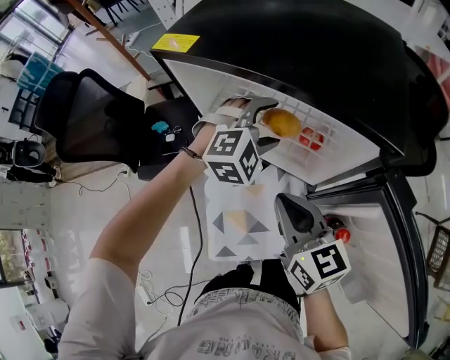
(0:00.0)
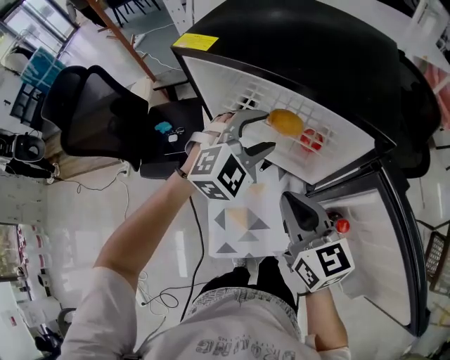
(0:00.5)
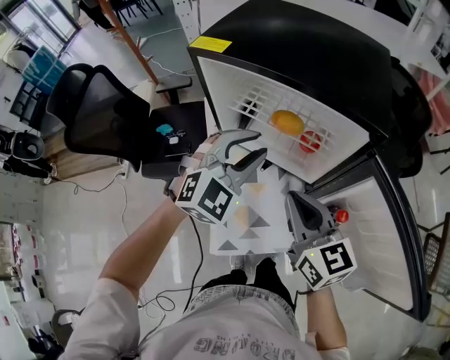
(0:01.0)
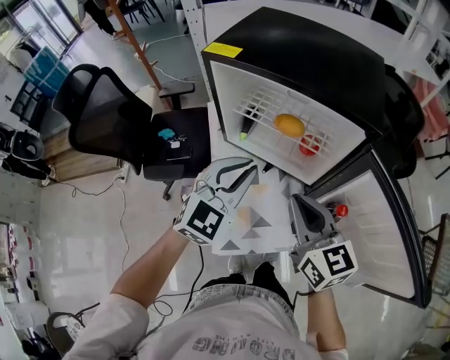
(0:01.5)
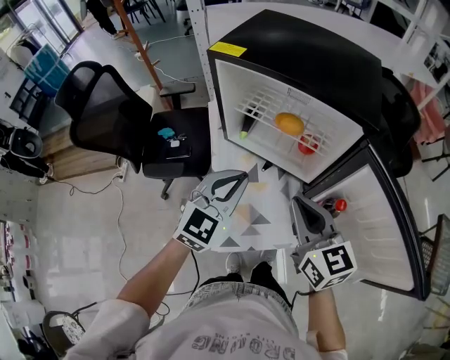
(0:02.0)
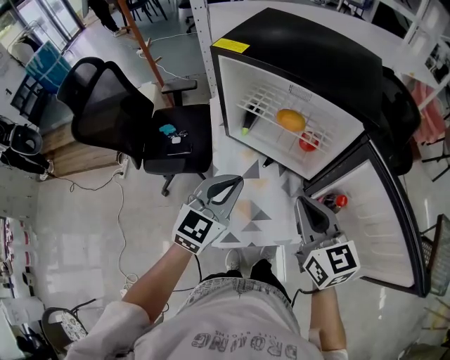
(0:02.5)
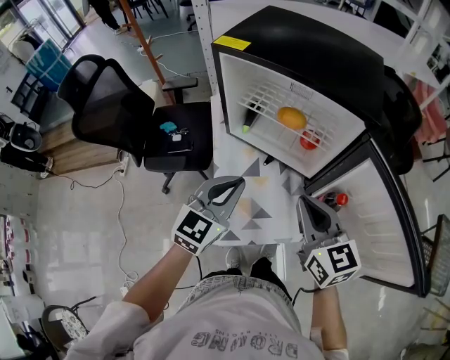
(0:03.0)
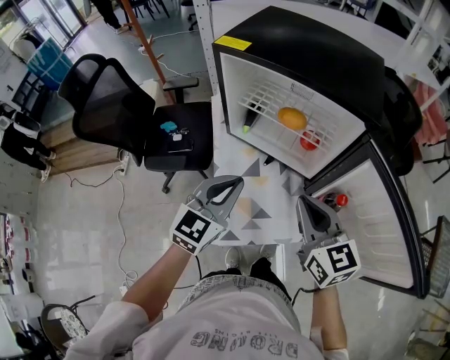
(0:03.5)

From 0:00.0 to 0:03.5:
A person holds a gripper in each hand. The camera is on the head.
From 0:00.0 to 0:02.0: The left gripper travels backward and to the left by some 20 cm, changes its angle by roughly 50 degrees, and closes its fingers. Meanwhile the right gripper heads backward and upward, covering about 10 cm.
From 0:02.0 to 0:03.5: There are only small adjustments of the grippers.

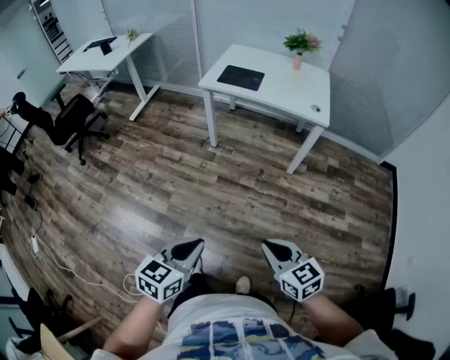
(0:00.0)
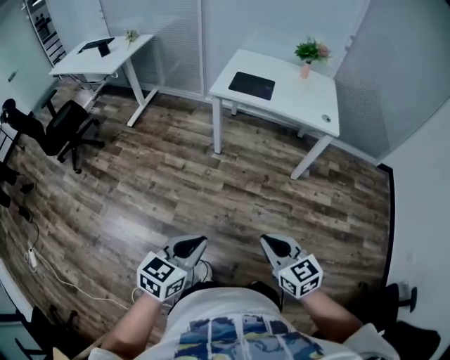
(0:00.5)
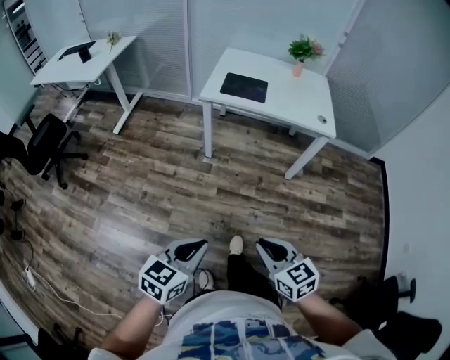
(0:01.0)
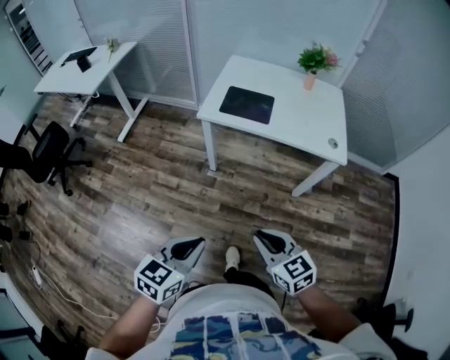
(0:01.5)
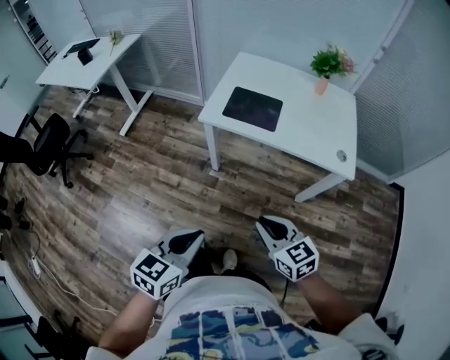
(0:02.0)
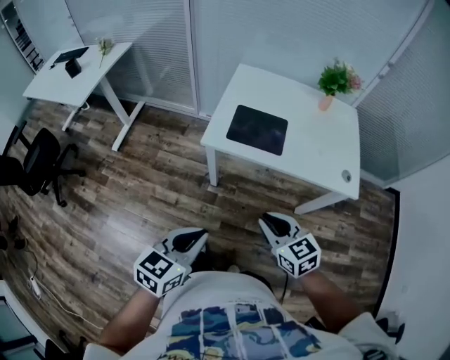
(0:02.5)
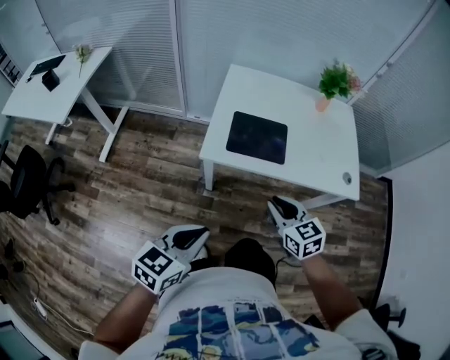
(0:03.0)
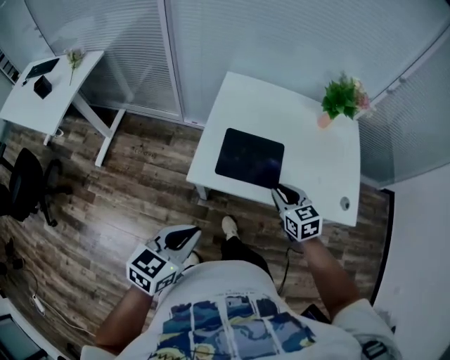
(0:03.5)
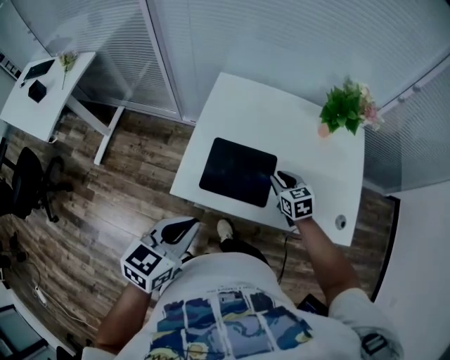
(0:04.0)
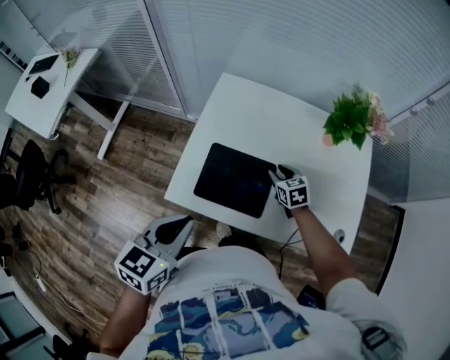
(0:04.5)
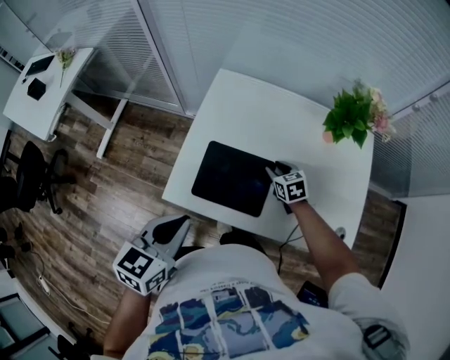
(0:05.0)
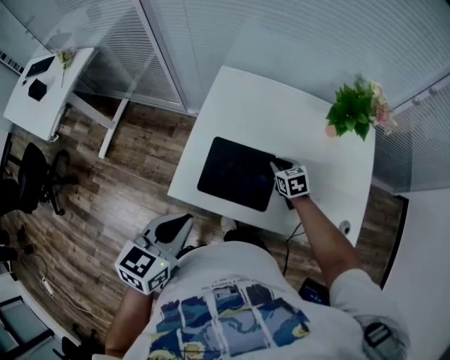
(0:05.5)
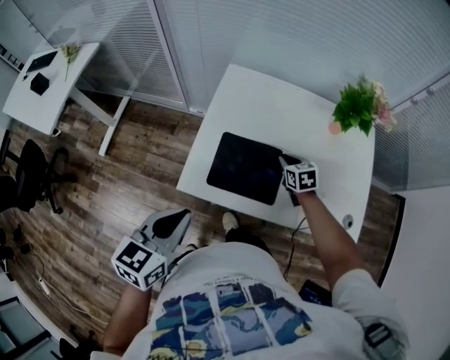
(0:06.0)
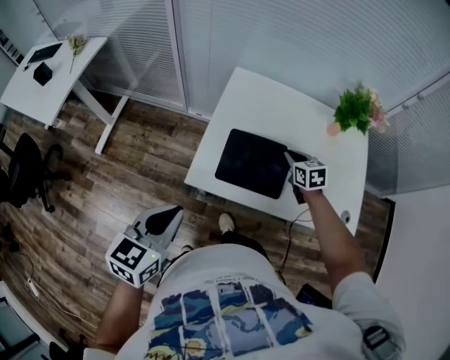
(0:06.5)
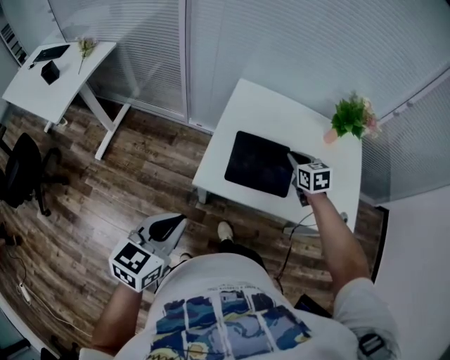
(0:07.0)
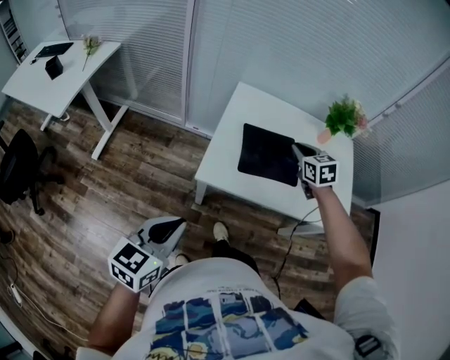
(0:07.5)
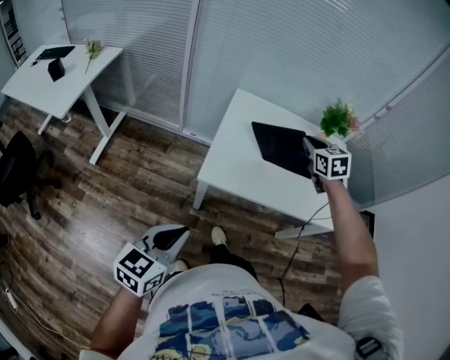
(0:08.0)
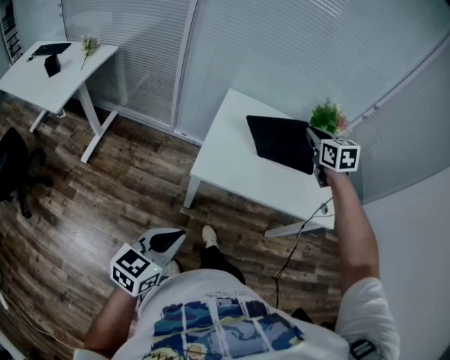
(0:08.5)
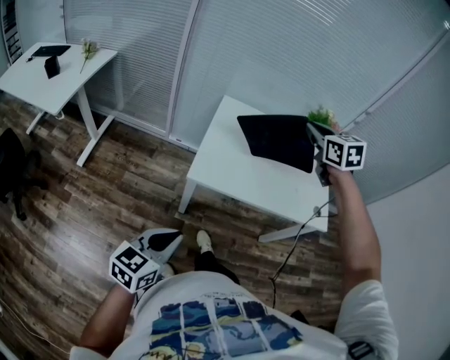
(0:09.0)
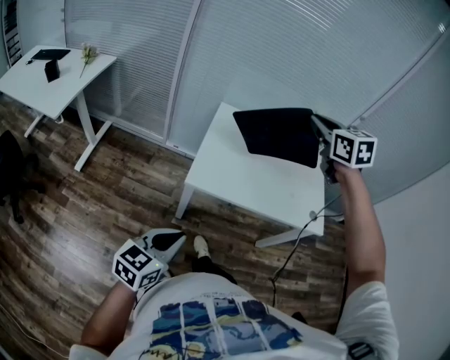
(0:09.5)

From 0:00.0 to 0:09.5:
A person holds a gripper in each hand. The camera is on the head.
From 0:00.0 to 0:02.0: The two grippers travel together, forward, about 40 cm.
From 0:02.0 to 0:04.0: The pair of grippers is taken forward, about 50 cm. The right gripper swivels some 20 degrees.
From 0:04.0 to 0:05.5: The right gripper is displaced forward and downward by about 10 cm.
From 0:05.5 to 0:07.5: The left gripper shifts roughly 25 cm backward and to the left. Meanwhile the right gripper goes some 25 cm upward and backward.
From 0:07.5 to 0:09.5: The right gripper shifts roughly 30 cm upward, while the left gripper heads backward, covering some 10 cm.

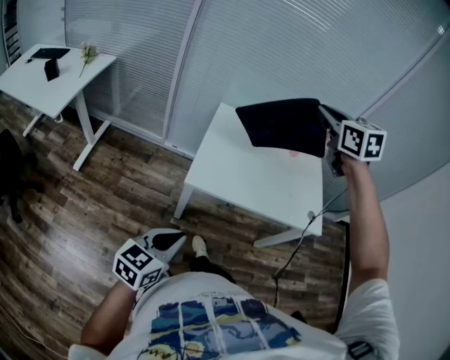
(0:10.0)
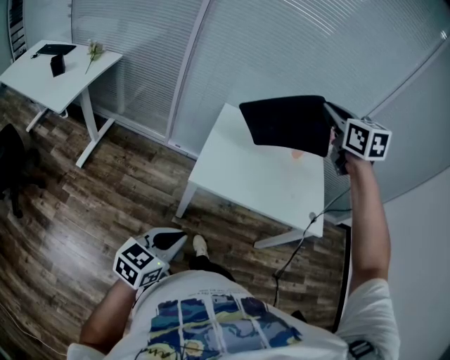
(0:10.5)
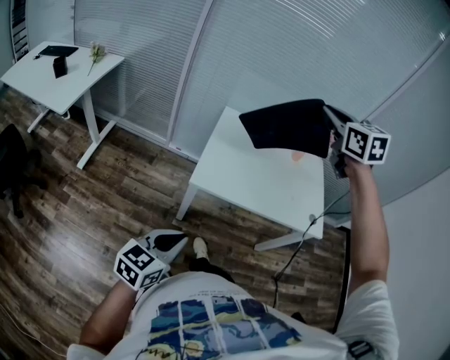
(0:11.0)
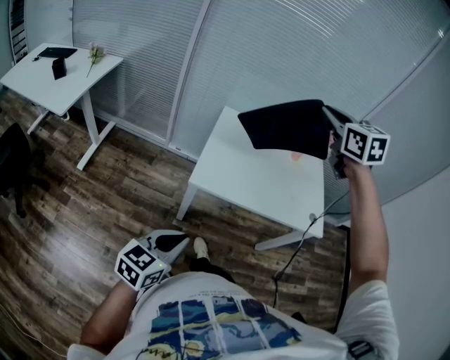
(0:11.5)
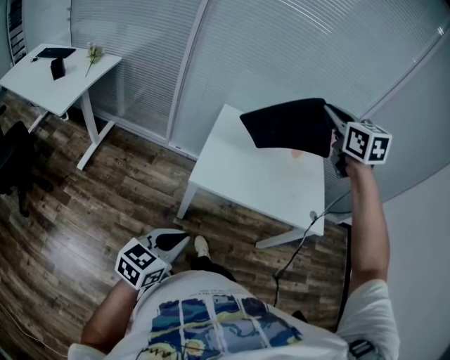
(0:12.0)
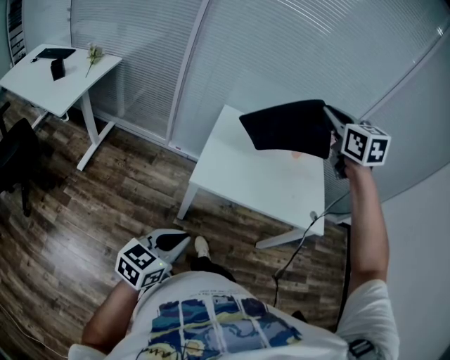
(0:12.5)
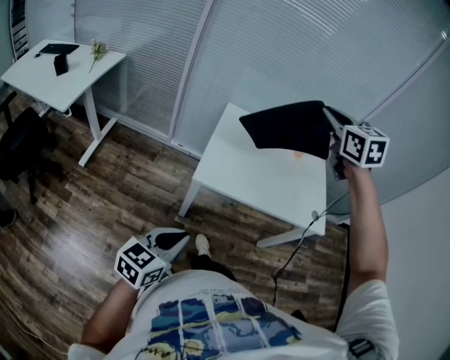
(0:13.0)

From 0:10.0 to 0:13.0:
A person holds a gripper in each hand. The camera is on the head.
From 0:10.0 to 0:13.0: The grippers move only a little.

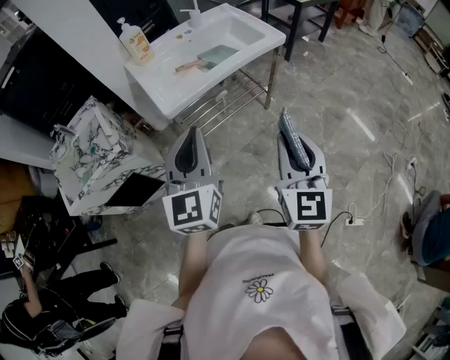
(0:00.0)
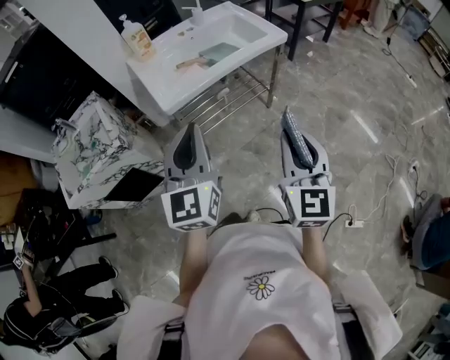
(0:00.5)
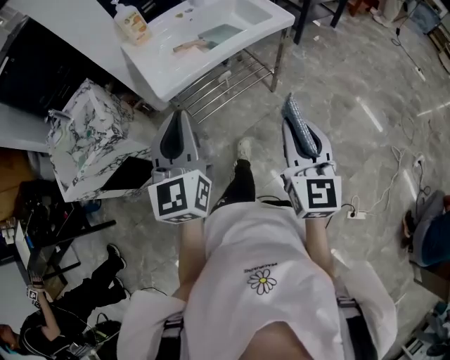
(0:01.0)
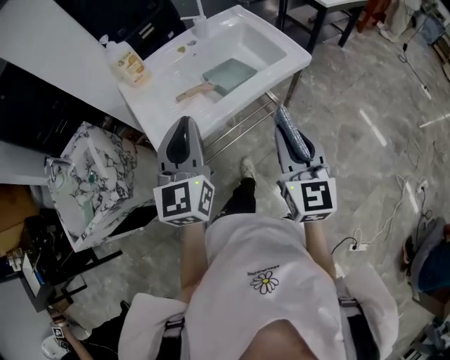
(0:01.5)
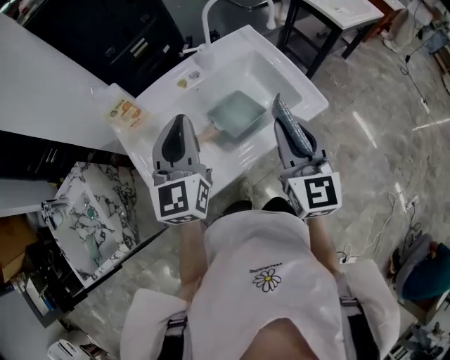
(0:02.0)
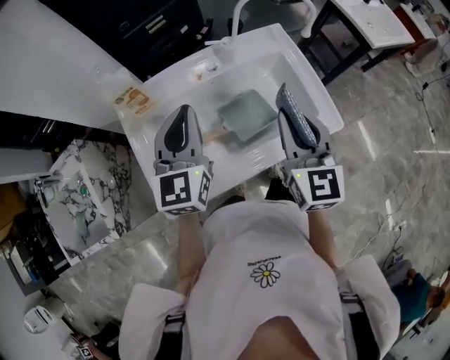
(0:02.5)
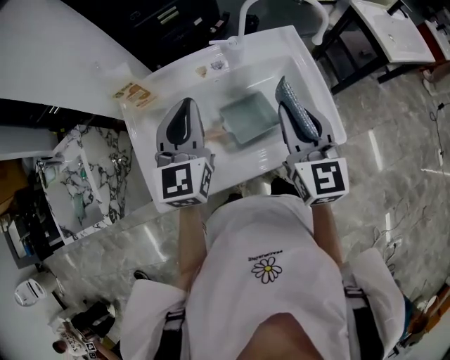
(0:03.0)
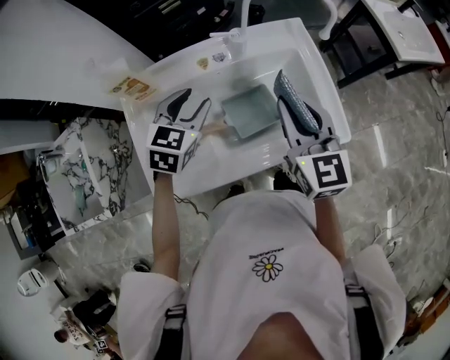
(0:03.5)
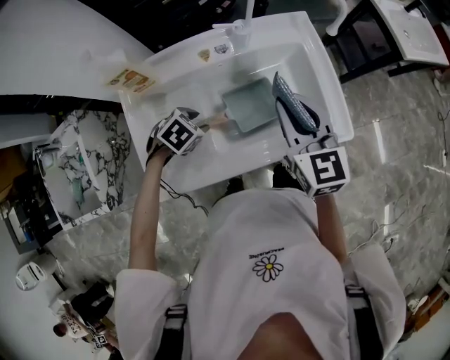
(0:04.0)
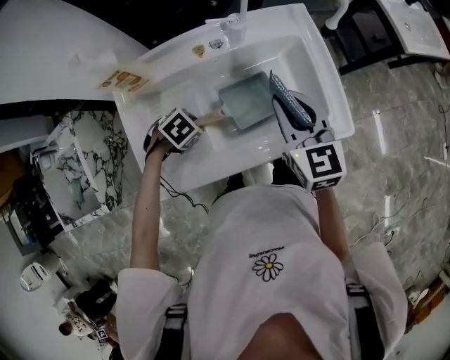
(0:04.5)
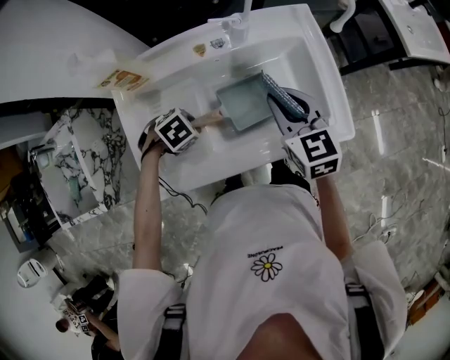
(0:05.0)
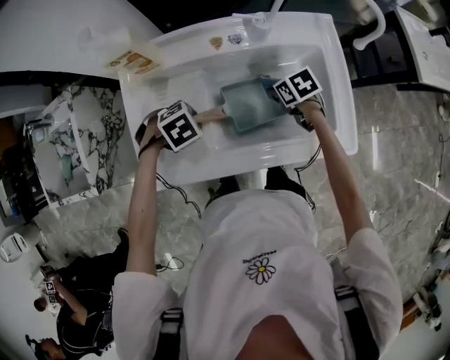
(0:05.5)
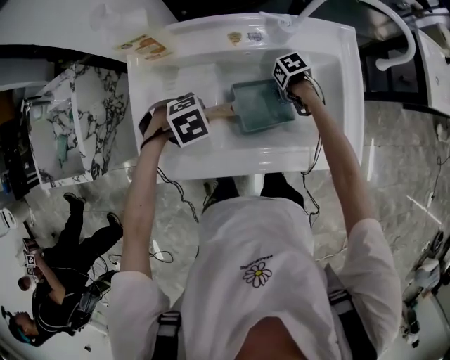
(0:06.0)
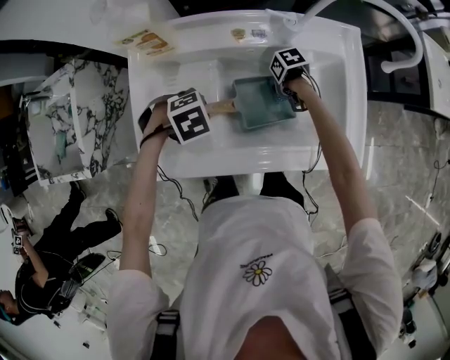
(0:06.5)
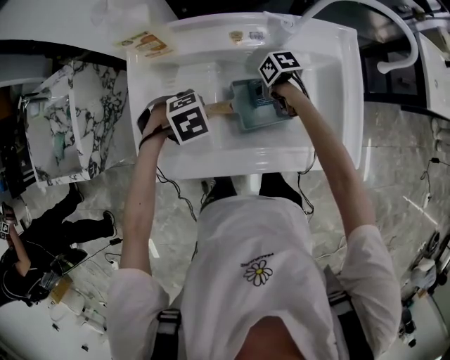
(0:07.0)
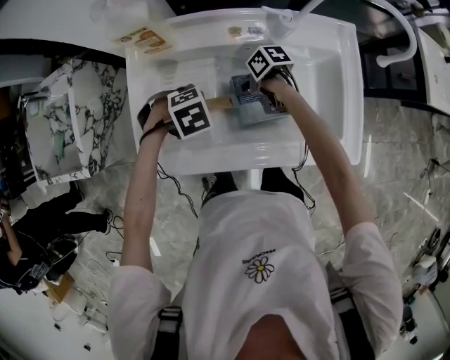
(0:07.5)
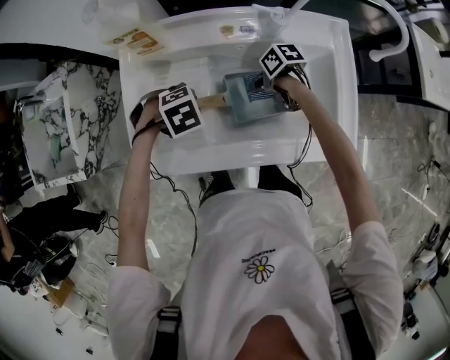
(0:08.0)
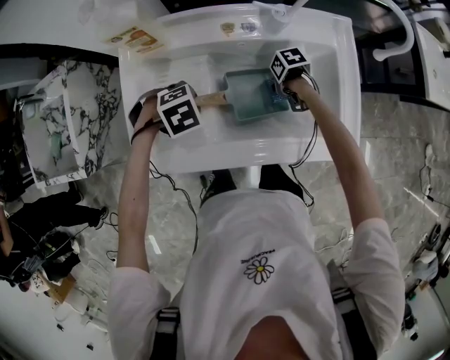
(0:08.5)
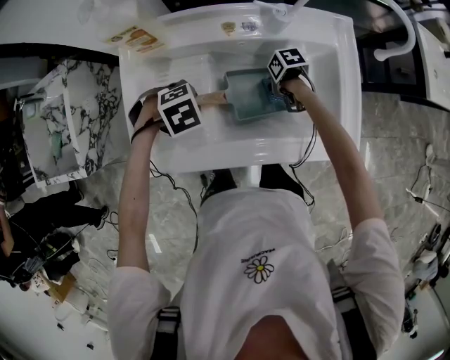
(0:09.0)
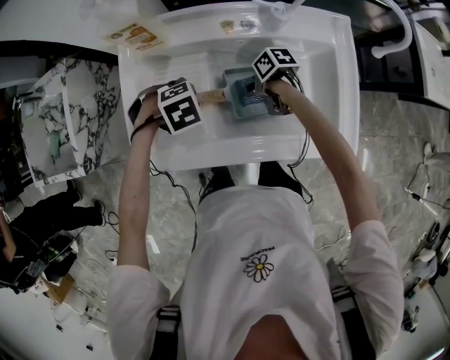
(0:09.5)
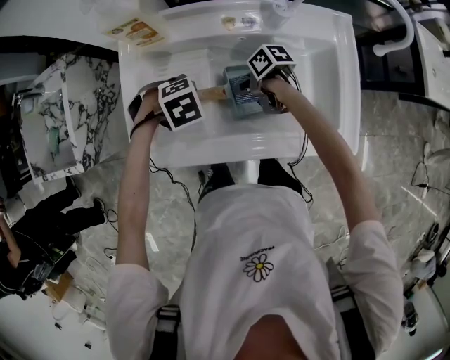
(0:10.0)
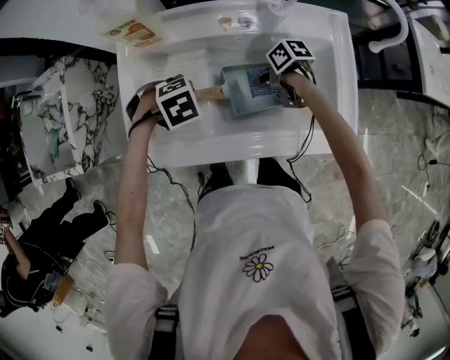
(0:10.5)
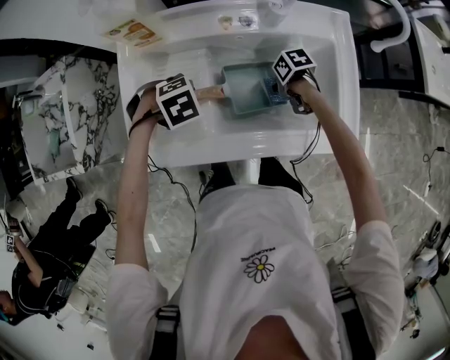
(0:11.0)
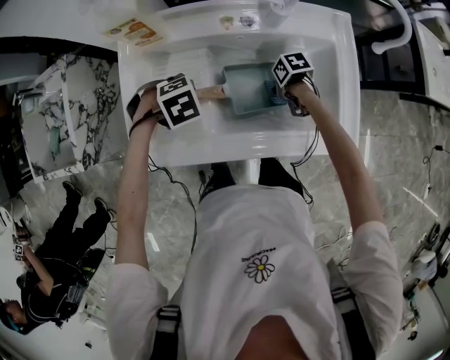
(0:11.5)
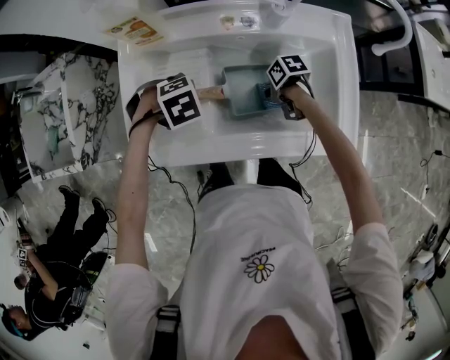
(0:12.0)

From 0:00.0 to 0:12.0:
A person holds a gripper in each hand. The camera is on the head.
From 0:00.0 to 0:02.0: The two grippers travel together, forward, about 50 cm.
From 0:02.0 to 0:04.0: The right gripper moves forward and downward, some 15 cm, and swivels some 30 degrees, while the left gripper heads downward, covering some 30 cm, angles its fingers downward, by approximately 70 degrees, and opens its fingers.
From 0:04.0 to 0:06.0: The right gripper is displaced downward by some 35 cm, and angles its fingers downward, by some 60 degrees.
From 0:06.0 to 0:08.0: The right gripper changes its angle by approximately 20 degrees.
From 0:10.0 to 0:12.0: The right gripper ends up approximately 10 cm from where it was.
